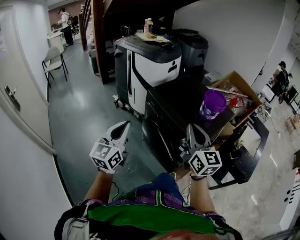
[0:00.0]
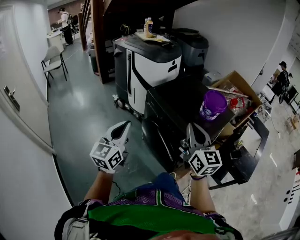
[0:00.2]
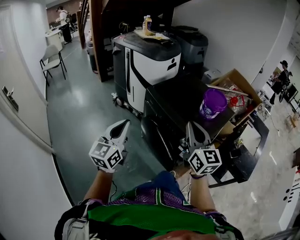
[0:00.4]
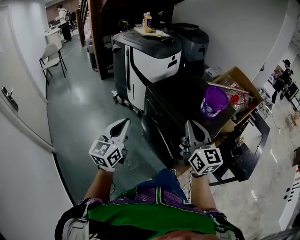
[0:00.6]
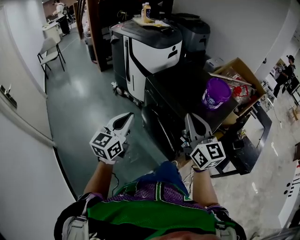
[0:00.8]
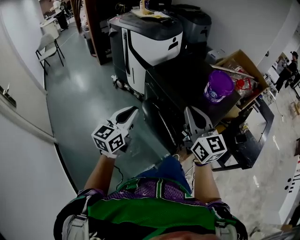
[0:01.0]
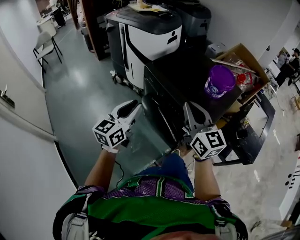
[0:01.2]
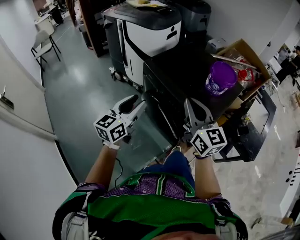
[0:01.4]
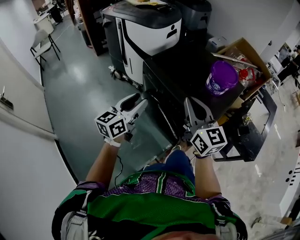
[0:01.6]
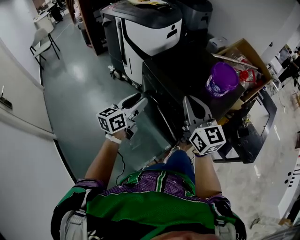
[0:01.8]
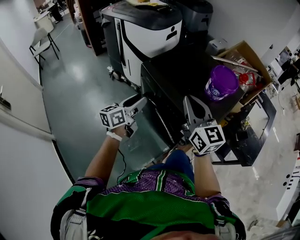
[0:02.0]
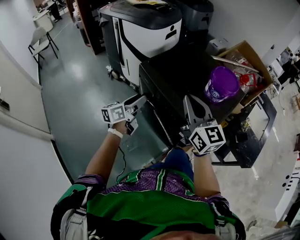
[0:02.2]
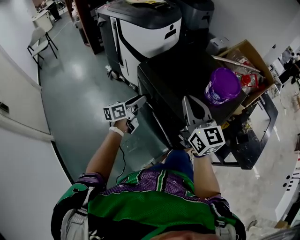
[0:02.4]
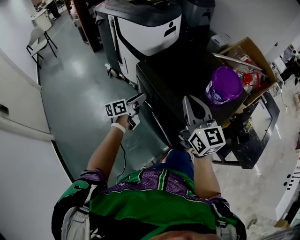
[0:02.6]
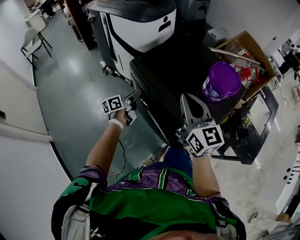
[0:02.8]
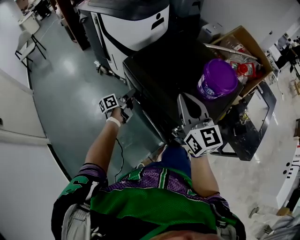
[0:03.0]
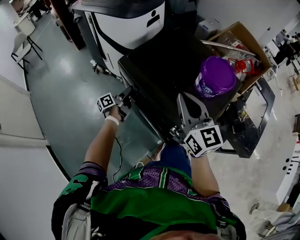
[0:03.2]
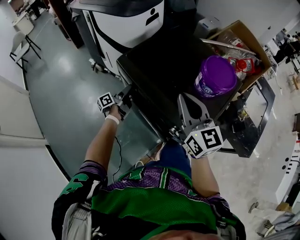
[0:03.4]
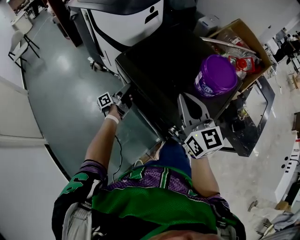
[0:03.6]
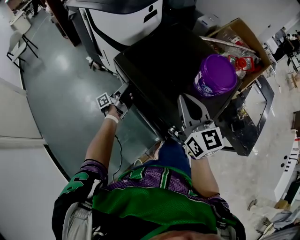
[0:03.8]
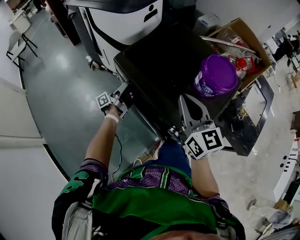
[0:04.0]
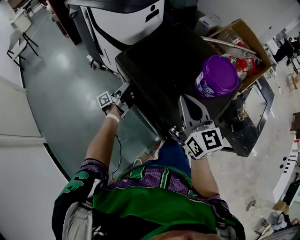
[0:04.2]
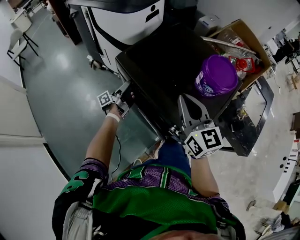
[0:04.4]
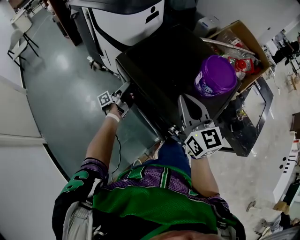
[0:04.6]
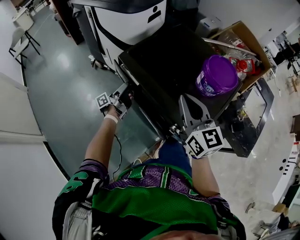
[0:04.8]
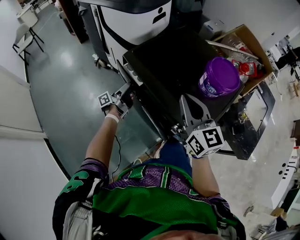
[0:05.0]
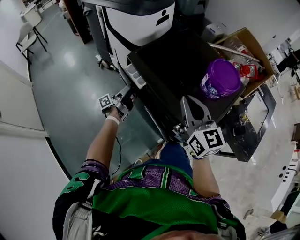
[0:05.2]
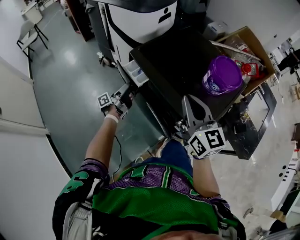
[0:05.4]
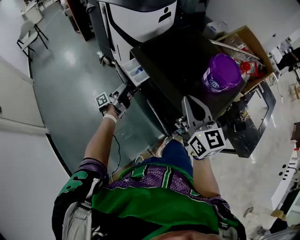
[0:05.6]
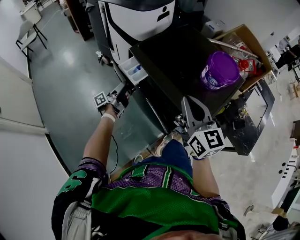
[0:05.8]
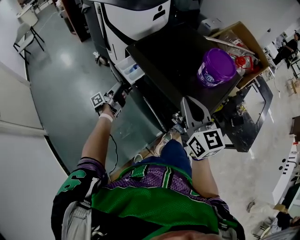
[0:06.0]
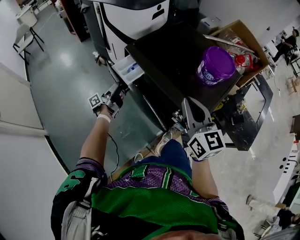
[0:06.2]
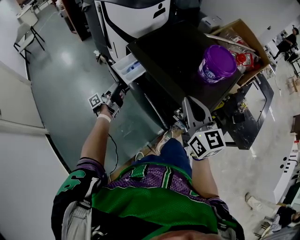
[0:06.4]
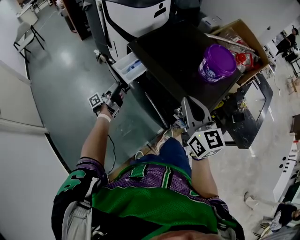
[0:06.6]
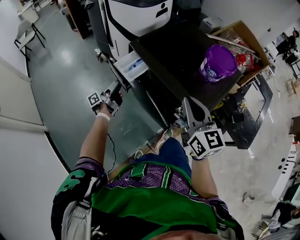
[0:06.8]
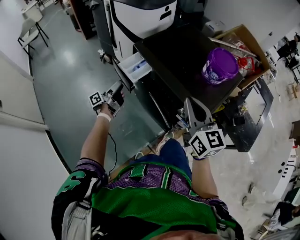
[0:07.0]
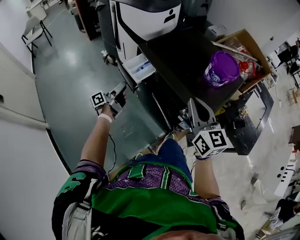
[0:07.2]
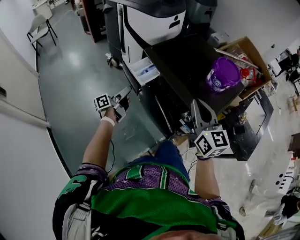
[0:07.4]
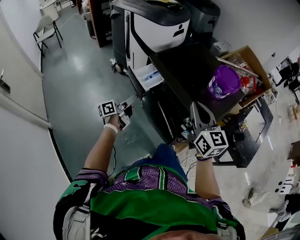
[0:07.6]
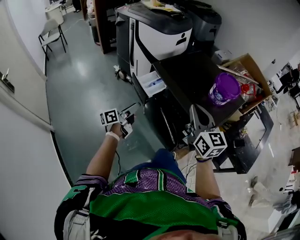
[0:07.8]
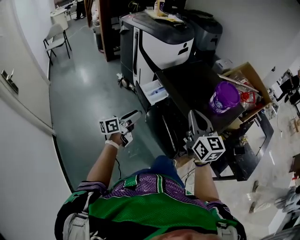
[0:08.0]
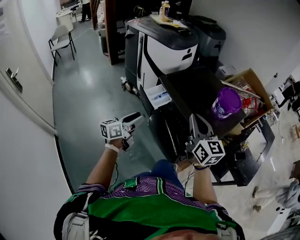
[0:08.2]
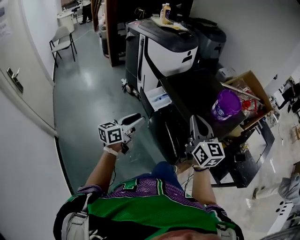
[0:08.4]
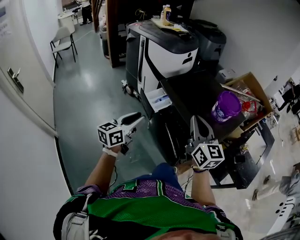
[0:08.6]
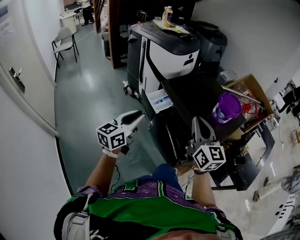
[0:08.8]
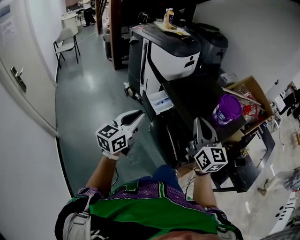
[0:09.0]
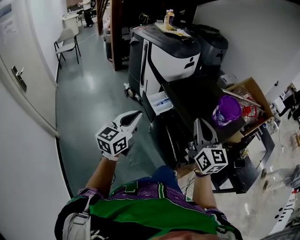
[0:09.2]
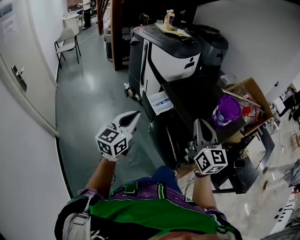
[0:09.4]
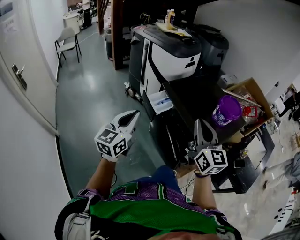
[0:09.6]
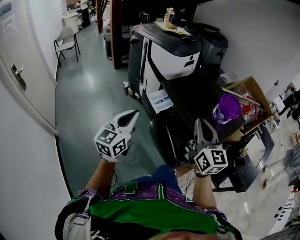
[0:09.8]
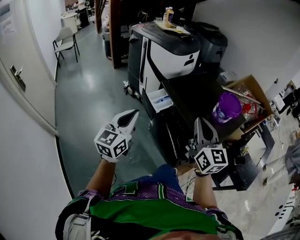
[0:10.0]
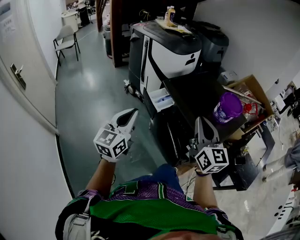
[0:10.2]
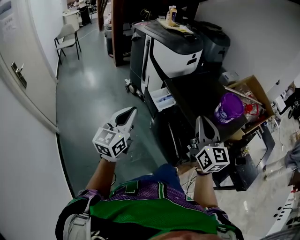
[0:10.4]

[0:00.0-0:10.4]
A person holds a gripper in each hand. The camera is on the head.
0:00.0 to 0:01.4: The left gripper heads forward, downward and to the right, covering roughly 15 cm, and opens up. Meanwhile the right gripper travels forward by about 5 cm.
0:01.4 to 0:03.0: The left gripper heads forward and downward, covering approximately 35 cm, and twists about 50 degrees counterclockwise, seen from behind. Meanwhile the right gripper shifts some 15 cm forward.
0:03.0 to 0:04.4: The left gripper turns by roughly 30 degrees.
0:04.4 to 0:06.0: The right gripper shifts some 10 cm backward, while the left gripper heads backward and to the left, covering roughly 10 cm.
0:06.0 to 0:07.4: The left gripper travels backward and upward by some 10 cm.
0:07.4 to 0:09.0: The left gripper heads upward and backward, covering approximately 30 cm, rotates around the line of its fingers by approximately 60 degrees, clockwise from behind, and closes up; the right gripper goes about 10 cm upward.
0:09.0 to 0:10.4: The grippers make only small movements.

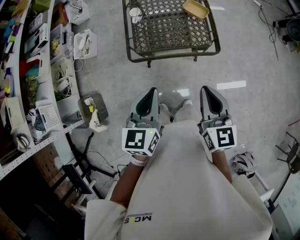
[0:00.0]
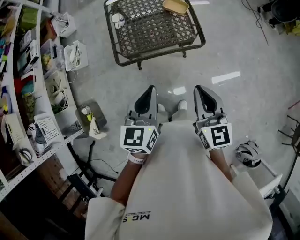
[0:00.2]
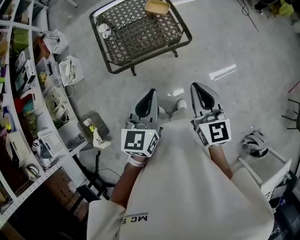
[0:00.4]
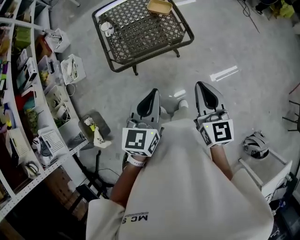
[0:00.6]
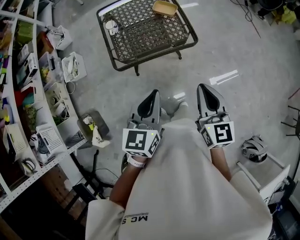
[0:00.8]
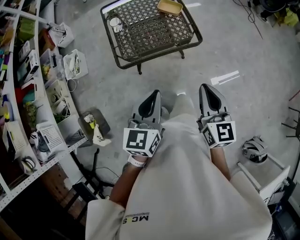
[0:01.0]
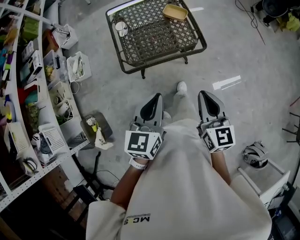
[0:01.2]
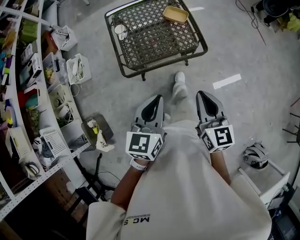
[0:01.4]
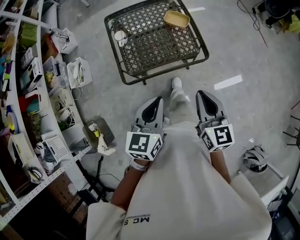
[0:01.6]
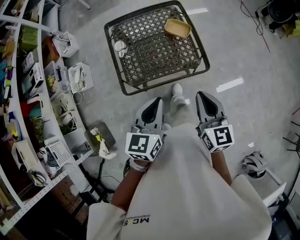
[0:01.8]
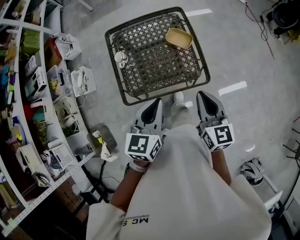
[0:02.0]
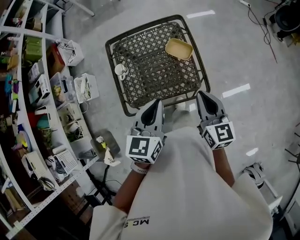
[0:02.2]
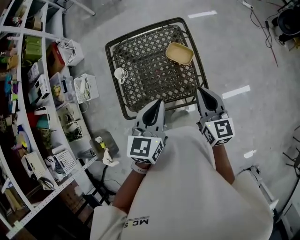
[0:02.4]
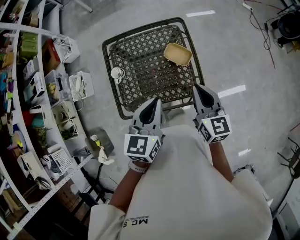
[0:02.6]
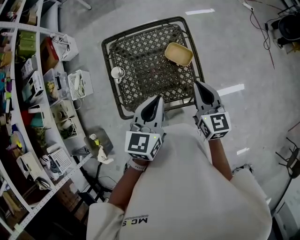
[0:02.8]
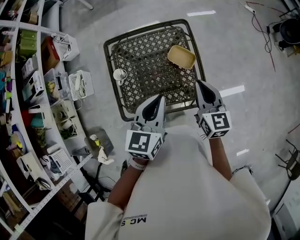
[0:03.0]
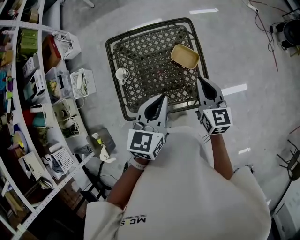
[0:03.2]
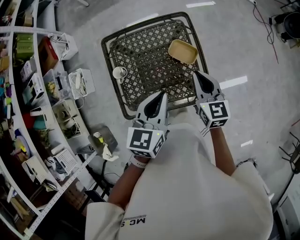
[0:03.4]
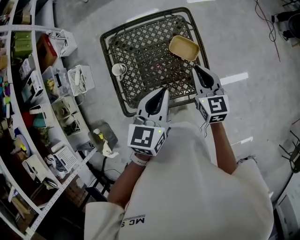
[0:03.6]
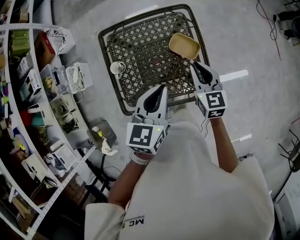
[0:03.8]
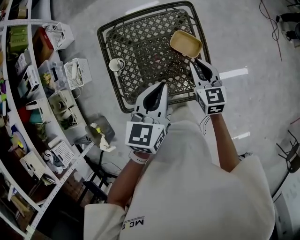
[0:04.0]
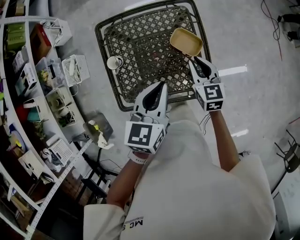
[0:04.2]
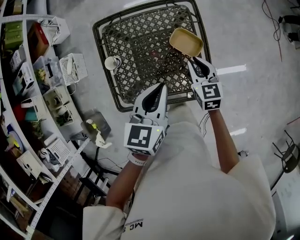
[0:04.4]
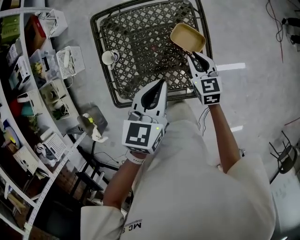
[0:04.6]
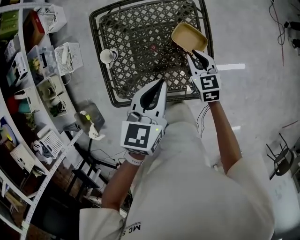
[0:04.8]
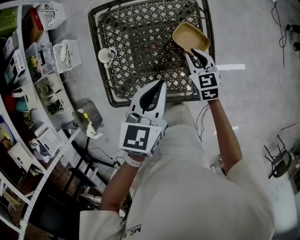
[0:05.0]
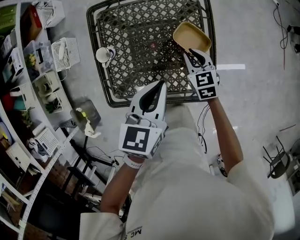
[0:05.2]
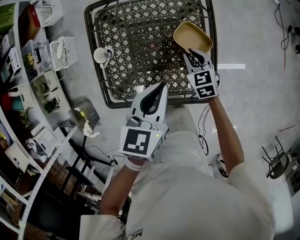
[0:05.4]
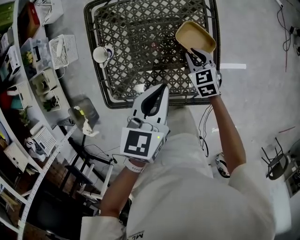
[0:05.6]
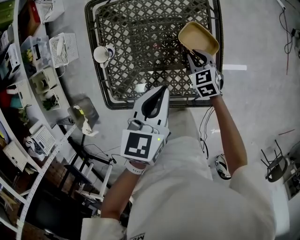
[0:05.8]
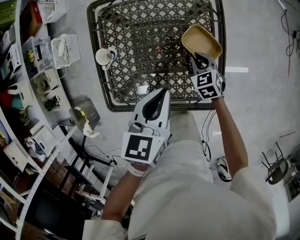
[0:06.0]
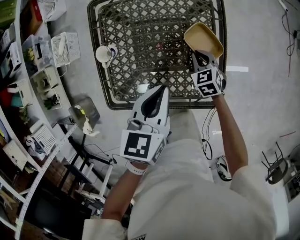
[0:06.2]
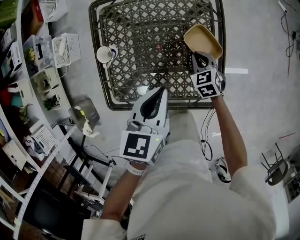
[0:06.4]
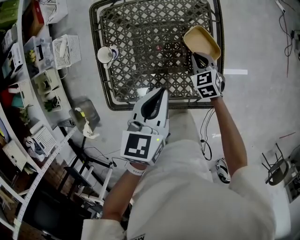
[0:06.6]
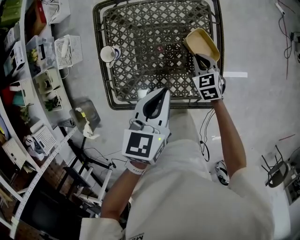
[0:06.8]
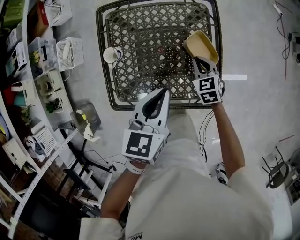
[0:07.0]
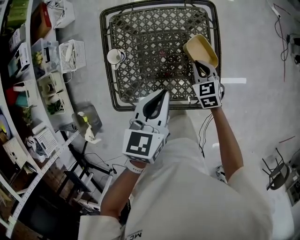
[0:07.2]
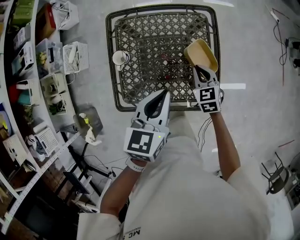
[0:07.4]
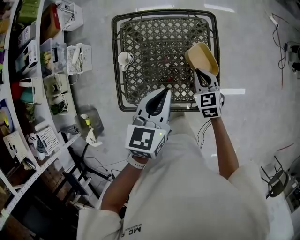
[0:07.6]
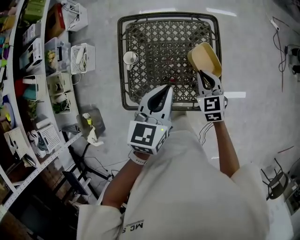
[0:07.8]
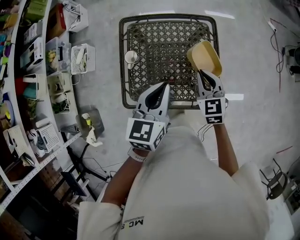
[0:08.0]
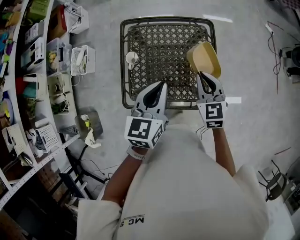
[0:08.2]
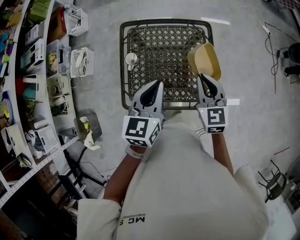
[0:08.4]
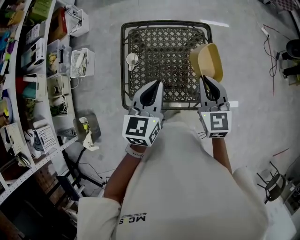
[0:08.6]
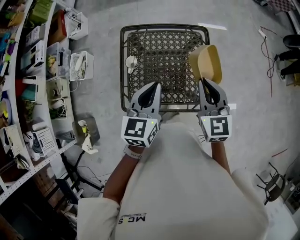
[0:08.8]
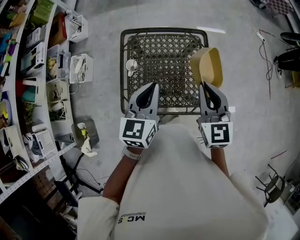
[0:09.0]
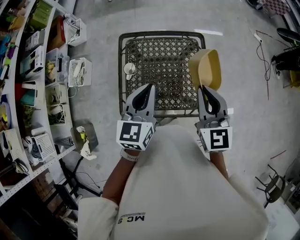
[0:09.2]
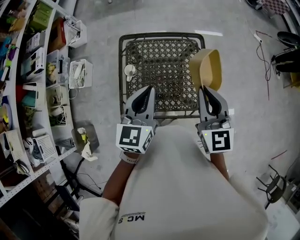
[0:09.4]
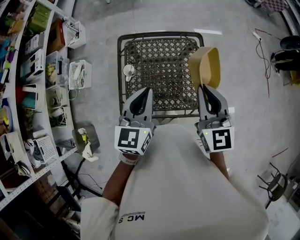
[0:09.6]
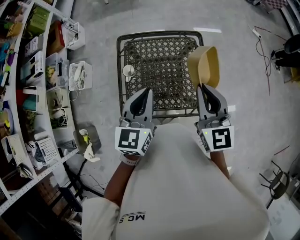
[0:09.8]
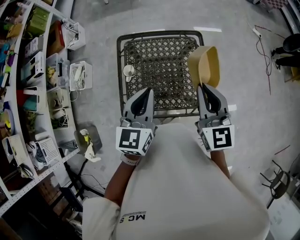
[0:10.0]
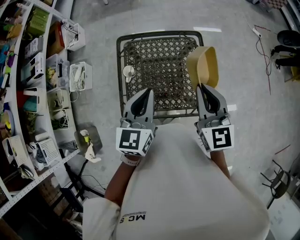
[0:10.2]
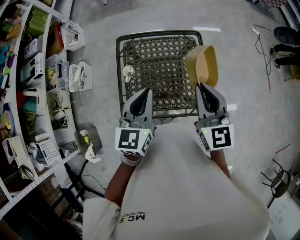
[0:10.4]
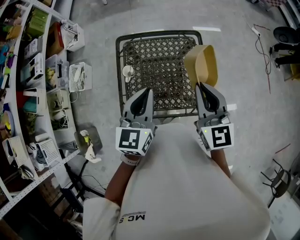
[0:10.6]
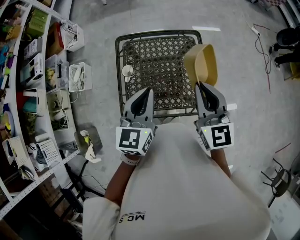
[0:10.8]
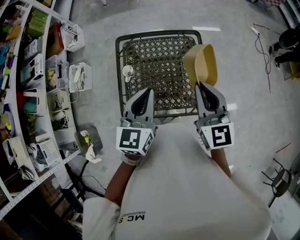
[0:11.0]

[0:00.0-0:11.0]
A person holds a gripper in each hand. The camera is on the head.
0:00.0 to 0:01.6: The left gripper moves some 10 cm to the right and comes back.
0:01.6 to 0:03.2: The grippers both shift forward by approximately 35 cm.
0:03.2 to 0:04.8: The right gripper moves downward and forward, roughly 20 cm, and swivels some 20 degrees; the left gripper heads downward, covering some 10 cm.
0:04.8 to 0:06.2: The right gripper goes roughly 15 cm downward, and changes its angle by roughly 20 degrees; the left gripper heads downward, covering roughly 5 cm.
0:06.2 to 0:07.8: The left gripper heads upward, covering roughly 10 cm. Meanwhile the right gripper goes about 20 cm upward.
0:07.8 to 0:09.4: The right gripper heads upward, covering roughly 25 cm, and turns by approximately 30 degrees, while the left gripper moves upward and to the left, some 10 cm.
0:09.4 to 0:11.0: Both grippers stay put.

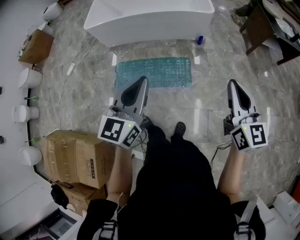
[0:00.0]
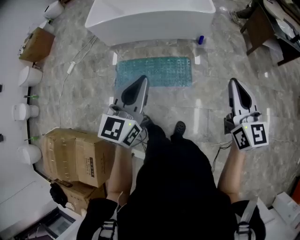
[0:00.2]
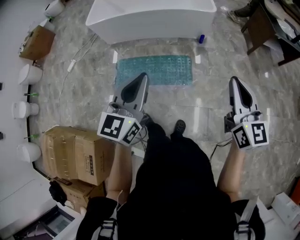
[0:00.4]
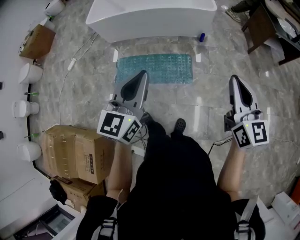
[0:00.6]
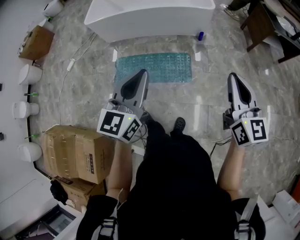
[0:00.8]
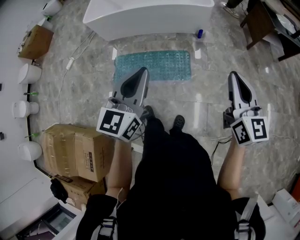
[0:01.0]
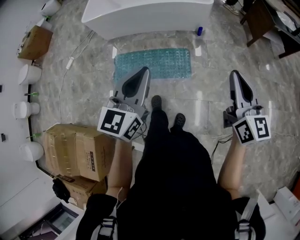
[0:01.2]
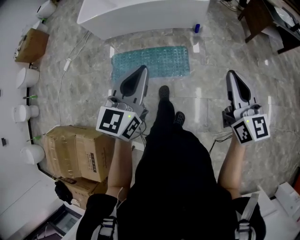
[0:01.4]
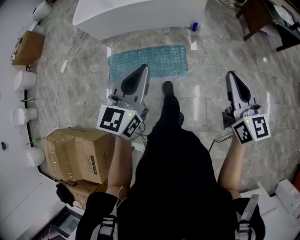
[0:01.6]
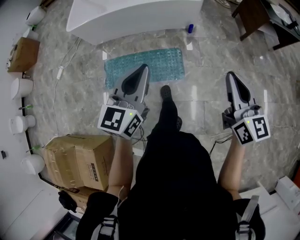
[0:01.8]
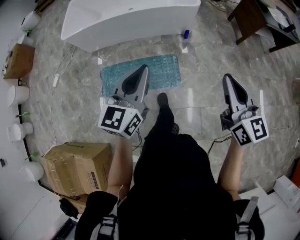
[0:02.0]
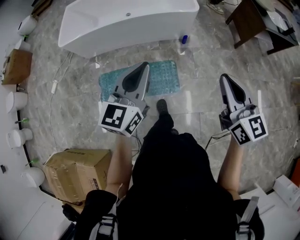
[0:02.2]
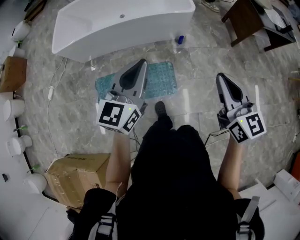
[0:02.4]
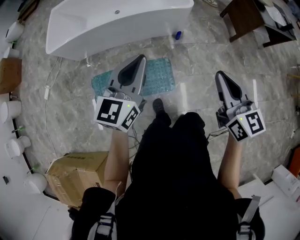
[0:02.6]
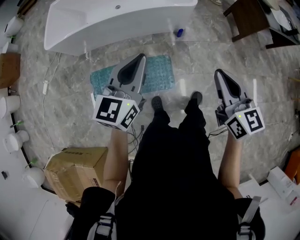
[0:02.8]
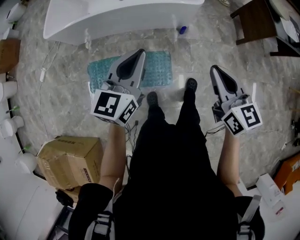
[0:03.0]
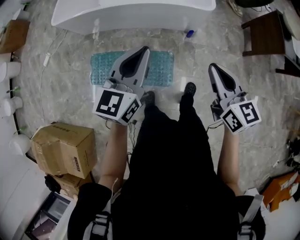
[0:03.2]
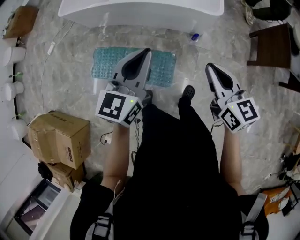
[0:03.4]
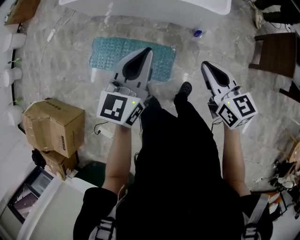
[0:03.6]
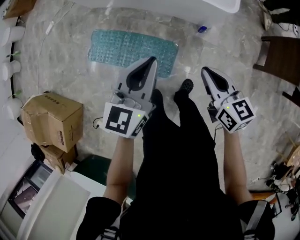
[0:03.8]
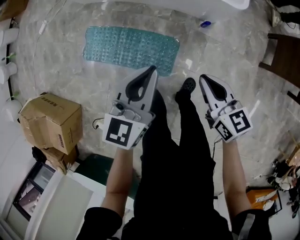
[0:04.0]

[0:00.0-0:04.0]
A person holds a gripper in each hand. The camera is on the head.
0:00.0 to 0:01.4: The grippers make only small movements.
0:01.4 to 0:02.6: The two grippers go roughly 30 cm forward.
0:02.6 to 0:04.0: The grippers both shift downward by about 25 cm. The right gripper turns by roughly 40 degrees; the left gripper swivels some 30 degrees.
